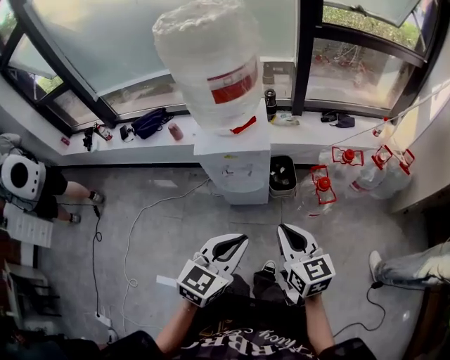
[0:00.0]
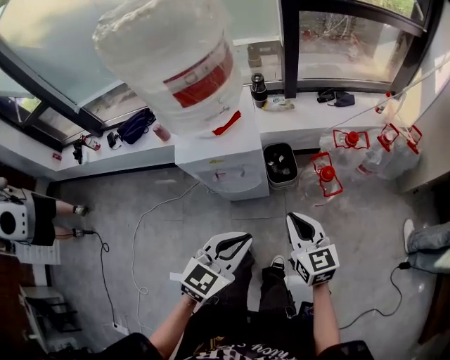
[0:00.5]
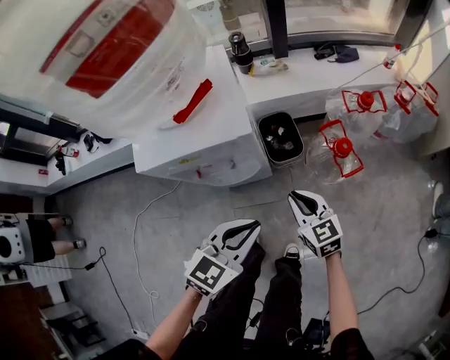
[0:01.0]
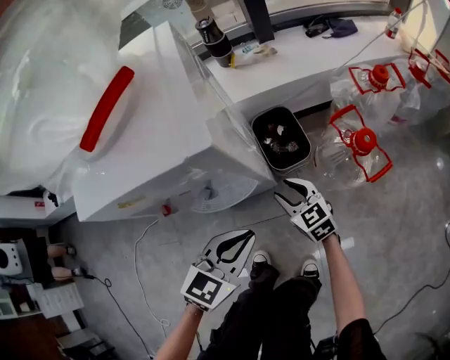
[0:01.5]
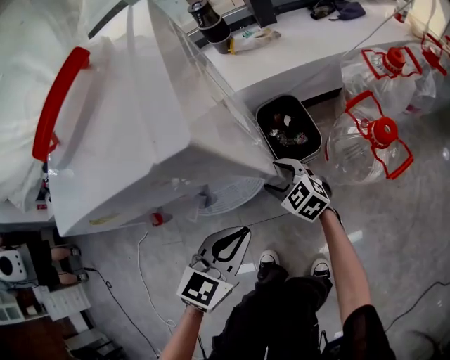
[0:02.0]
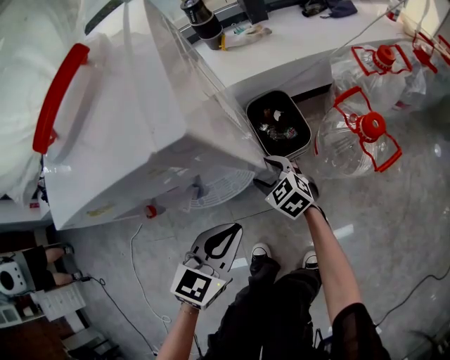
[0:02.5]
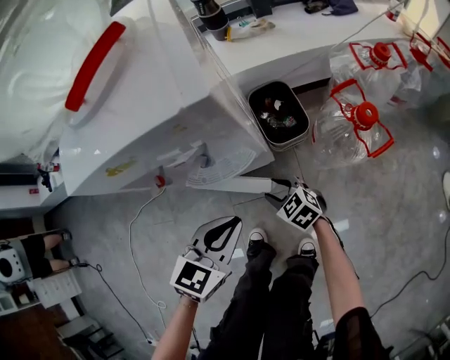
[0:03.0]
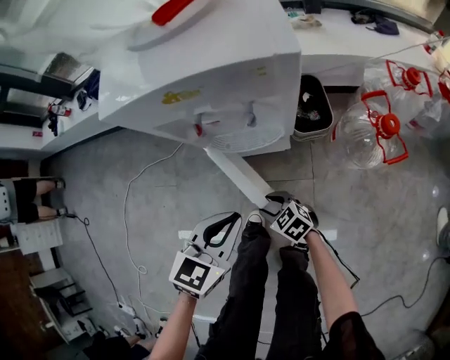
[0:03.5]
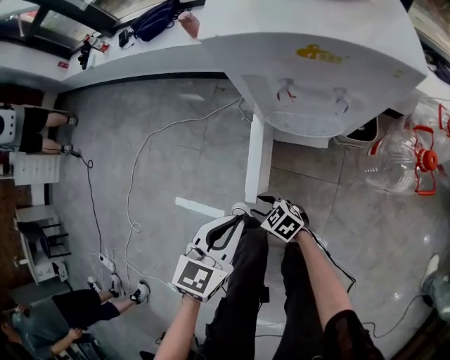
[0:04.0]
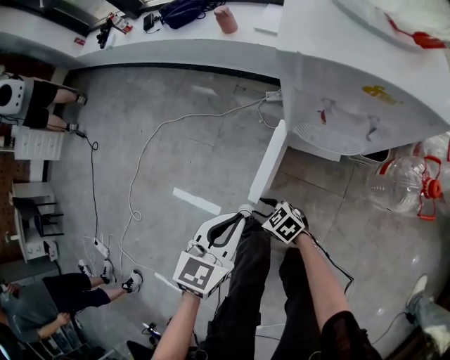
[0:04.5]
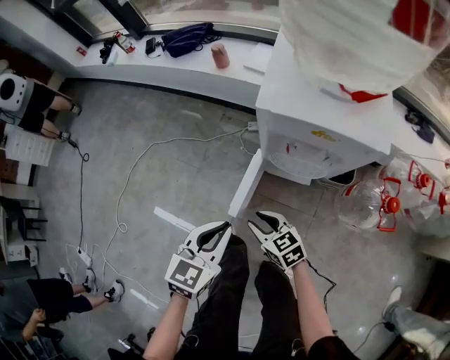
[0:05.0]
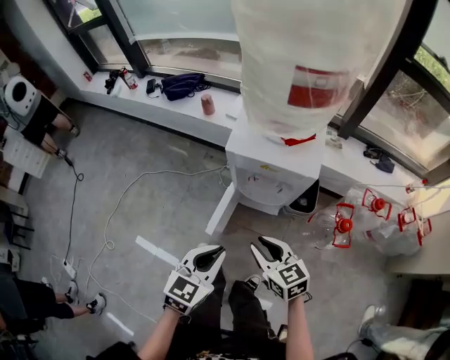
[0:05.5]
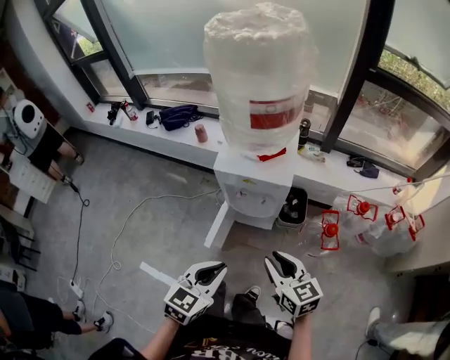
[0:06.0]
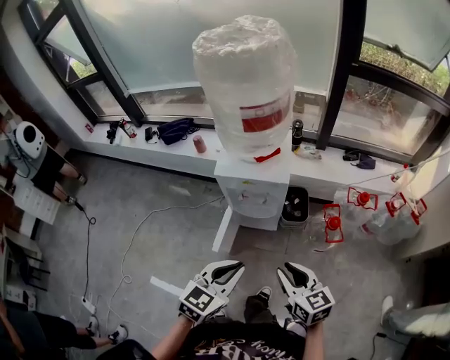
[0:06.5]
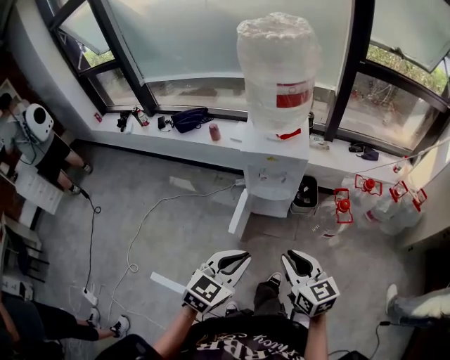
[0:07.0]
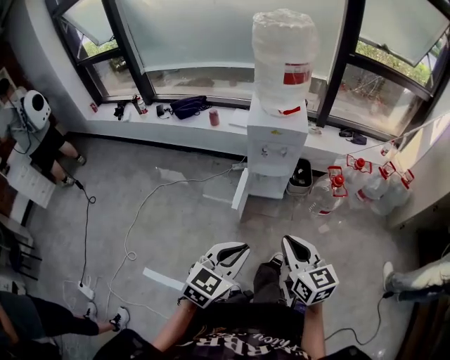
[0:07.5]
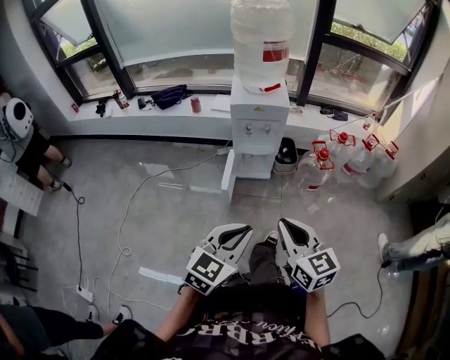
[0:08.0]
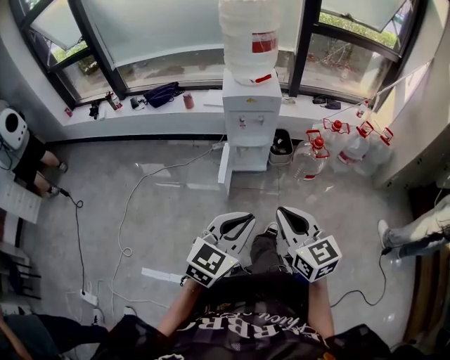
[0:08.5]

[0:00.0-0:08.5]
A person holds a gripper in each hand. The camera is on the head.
0:00.0 to 0:02.0: Both grippers move downward and forward, roughly 60 cm. The right gripper rotates some 30 degrees, and opens.
0:02.0 to 0:04.0: The left gripper shifts by some 25 cm, and turns by some 40 degrees. Meanwhile the right gripper moves about 40 cm, and changes its angle by roughly 40 degrees.
0:04.0 to 0:06.5: Both grippers travel together upward, about 40 cm. The right gripper turns by some 40 degrees.
0:06.5 to 0:08.5: The left gripper shifts some 30 cm backward. Meanwhile the right gripper is displaced backward and to the left by approximately 35 cm, and closes up.

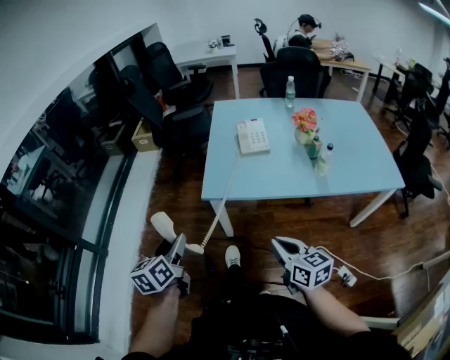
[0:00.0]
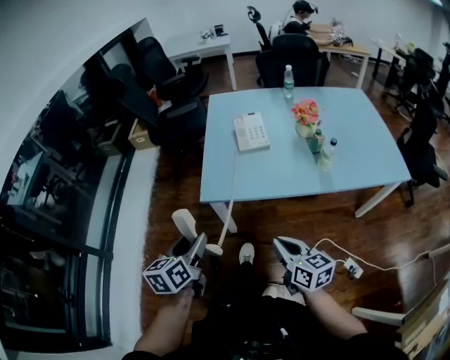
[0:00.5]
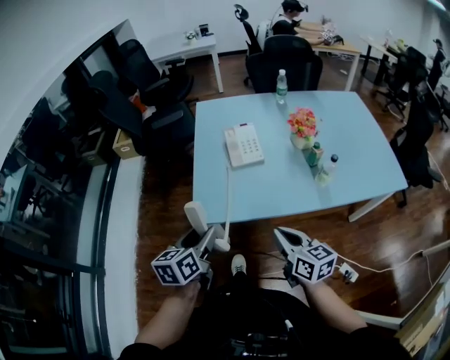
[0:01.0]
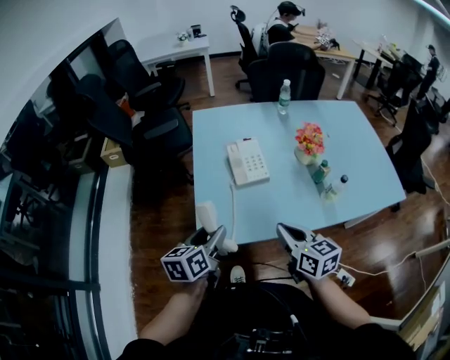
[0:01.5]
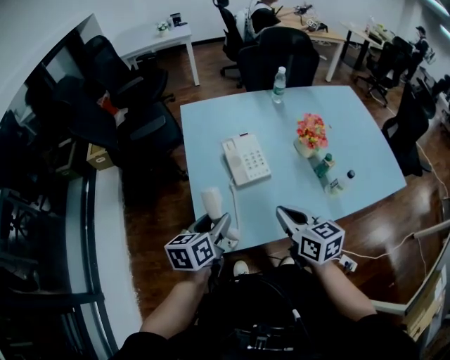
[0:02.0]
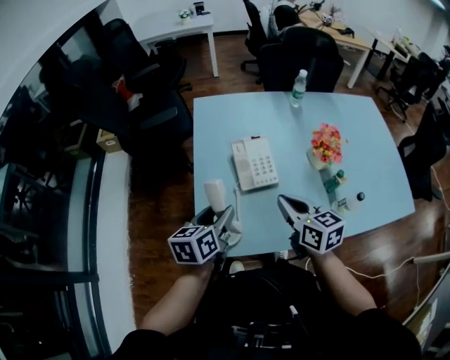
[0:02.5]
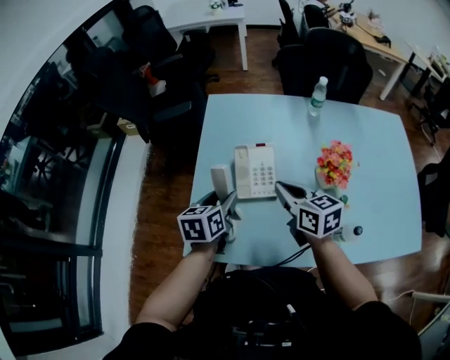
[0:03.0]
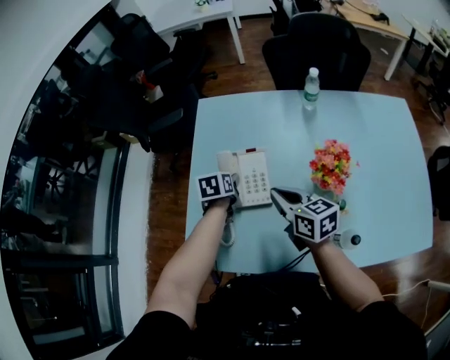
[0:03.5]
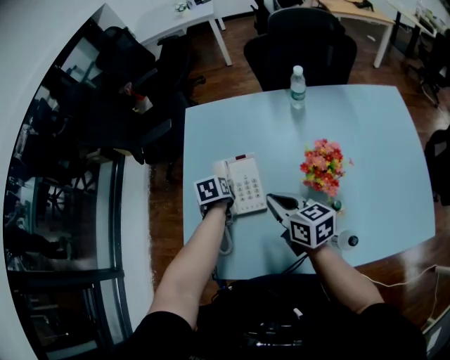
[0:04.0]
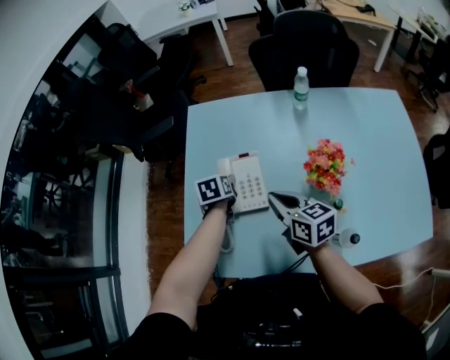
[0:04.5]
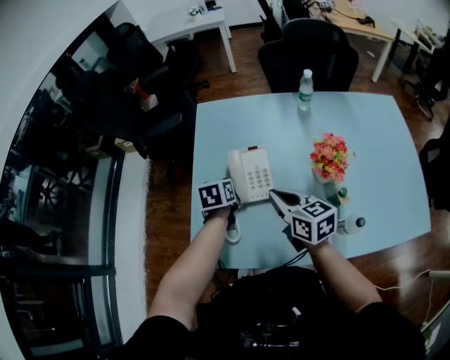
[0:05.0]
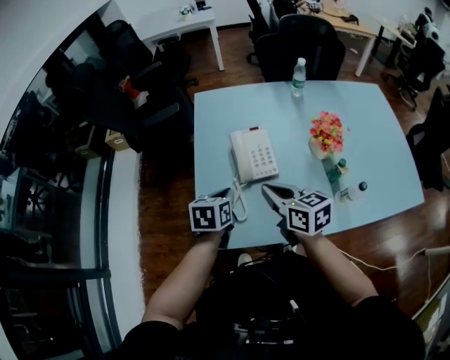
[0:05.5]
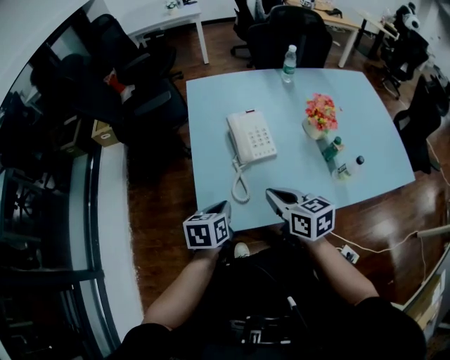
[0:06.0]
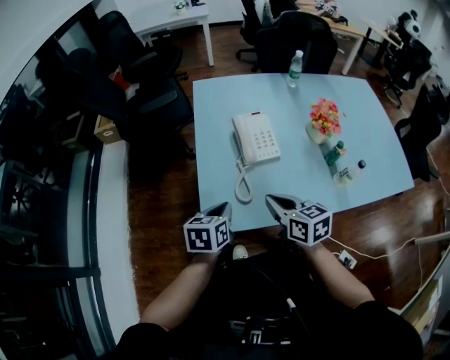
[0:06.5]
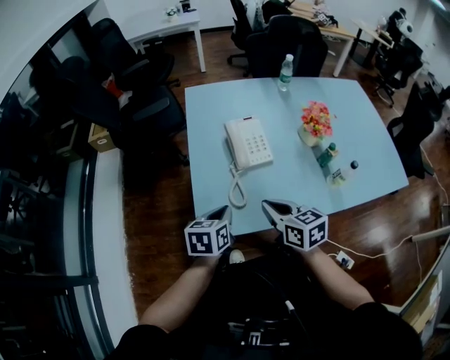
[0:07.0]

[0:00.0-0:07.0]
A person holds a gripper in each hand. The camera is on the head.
0:00.0 to 0:02.0: The two grippers go approximately 35 cm forward. The left gripper changes its angle by roughly 30 degrees.
0:02.0 to 0:03.5: The right gripper travels forward and to the right by some 20 cm, and rotates some 20 degrees; the left gripper is displaced forward, downward and to the right by approximately 30 cm, and turns by roughly 30 degrees.
0:03.5 to 0:05.0: The left gripper changes place by some 5 cm, and closes.
0:05.0 to 0:07.0: The left gripper moves backward, some 25 cm, and closes. Meanwhile the right gripper heads backward and to the left, covering roughly 20 cm.

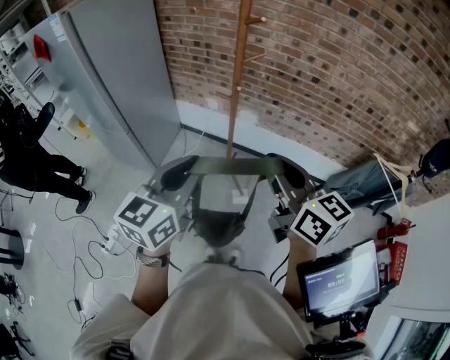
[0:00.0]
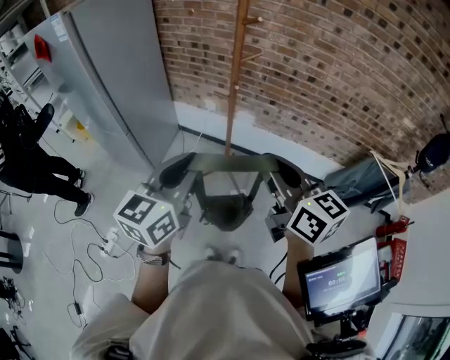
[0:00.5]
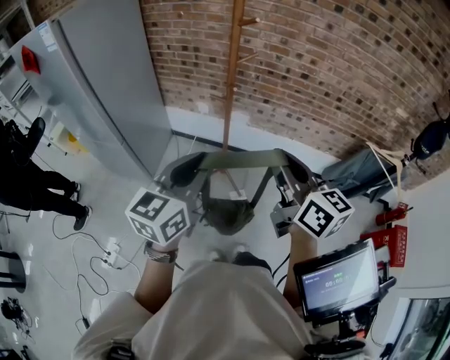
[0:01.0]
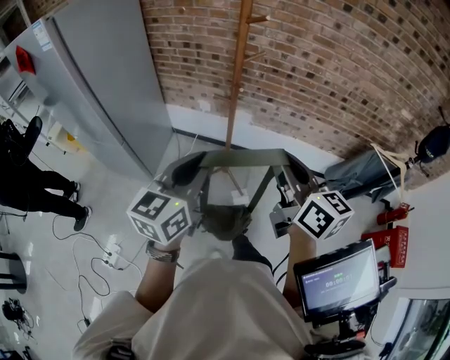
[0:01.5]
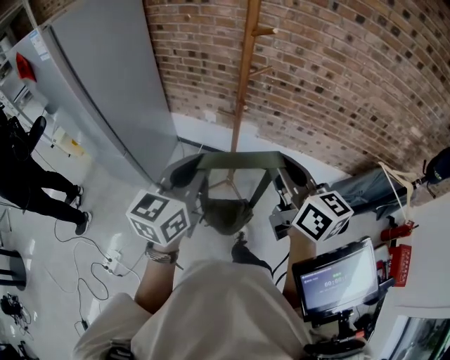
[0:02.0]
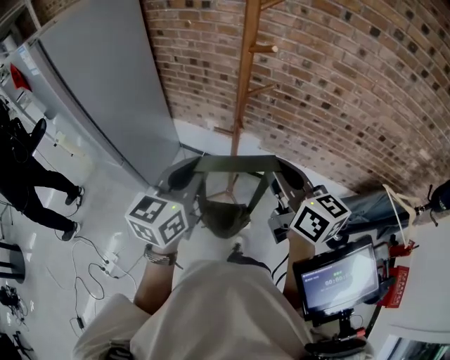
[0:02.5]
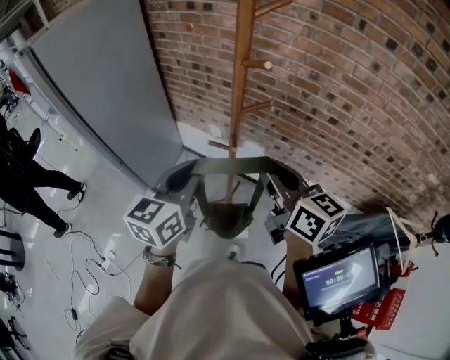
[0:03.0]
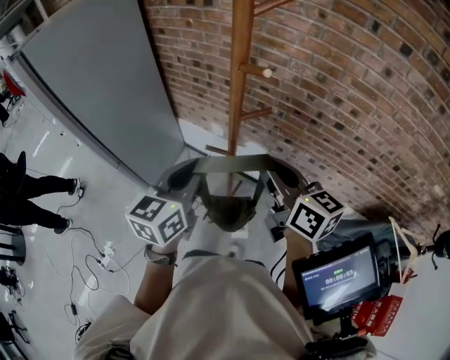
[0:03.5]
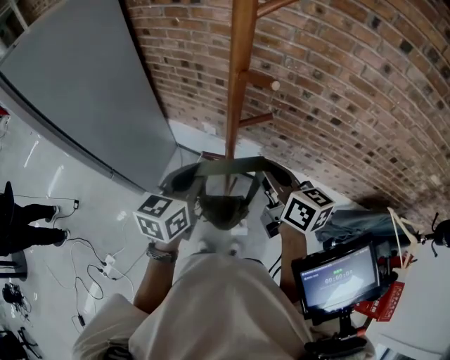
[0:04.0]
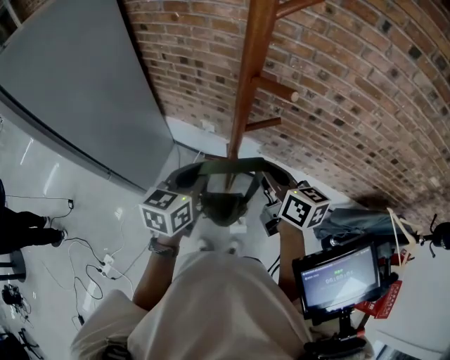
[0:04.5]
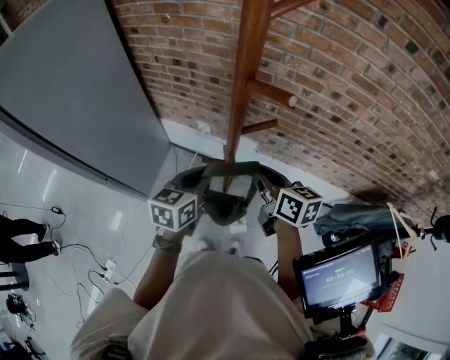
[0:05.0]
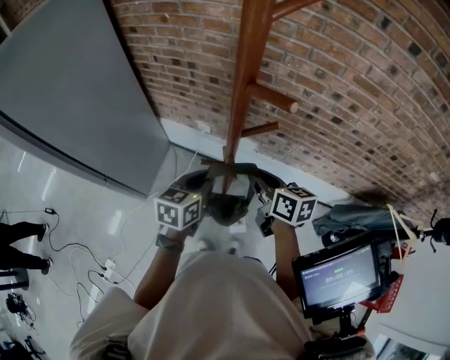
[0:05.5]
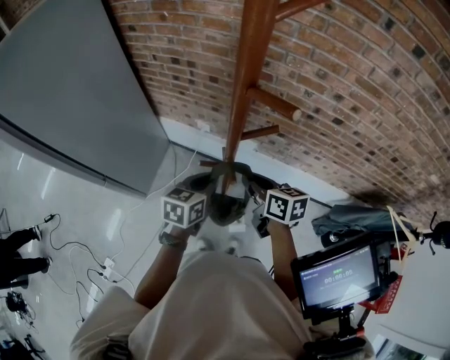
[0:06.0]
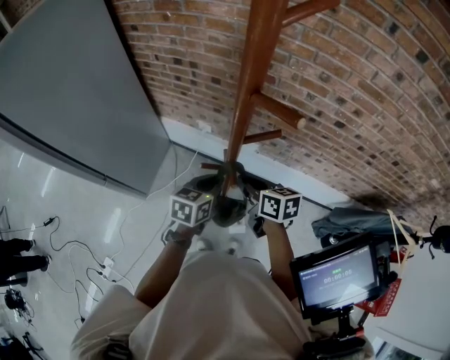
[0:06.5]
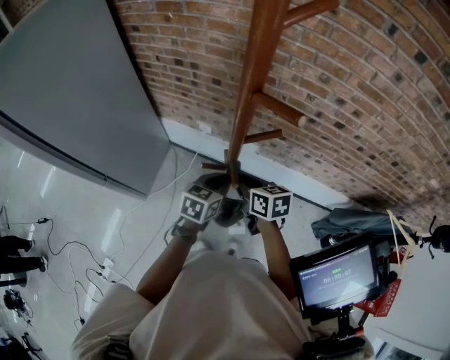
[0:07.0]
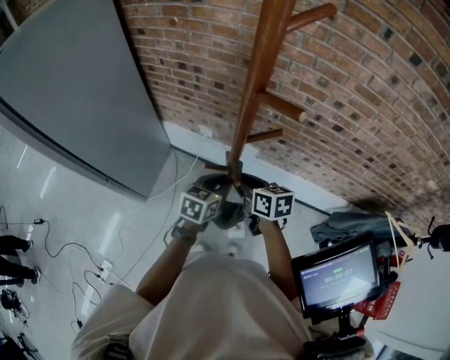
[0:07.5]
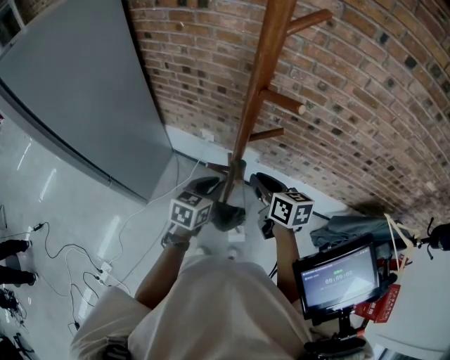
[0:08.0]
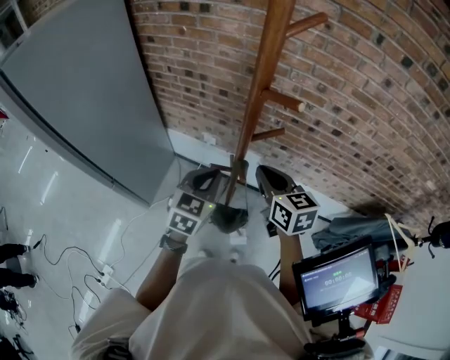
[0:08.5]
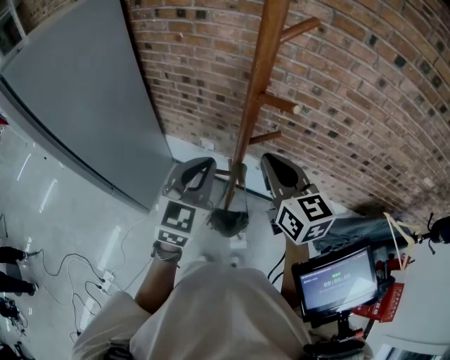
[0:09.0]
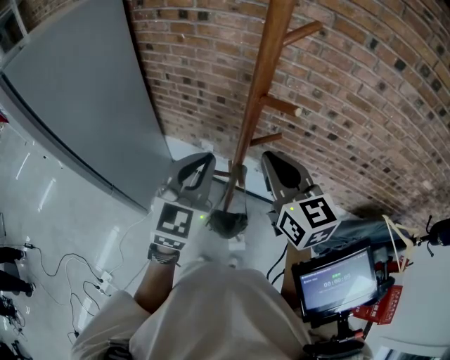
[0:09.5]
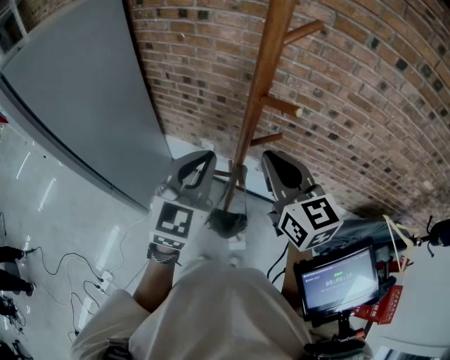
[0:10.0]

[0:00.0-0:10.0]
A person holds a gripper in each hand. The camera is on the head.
0:00.0 to 0:02.0: Both grippers move forward, about 10 cm.
0:02.0 to 0:04.0: Both grippers move forward, some 20 cm.
0:04.0 to 0:06.0: The two grippers go some 15 cm downward.
0:06.0 to 0:08.0: The grippers stay close to where they were, moving slightly.
0:08.0 to 0:10.0: Both grippers travel together upward, about 20 cm. The left gripper swivels about 40 degrees; the right gripper turns by roughly 30 degrees.

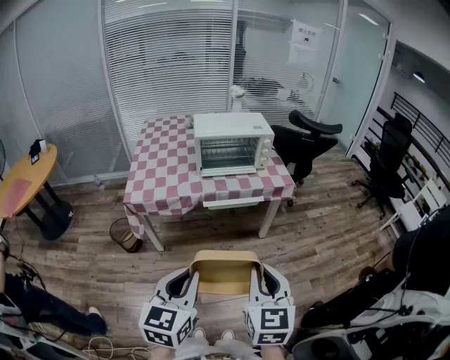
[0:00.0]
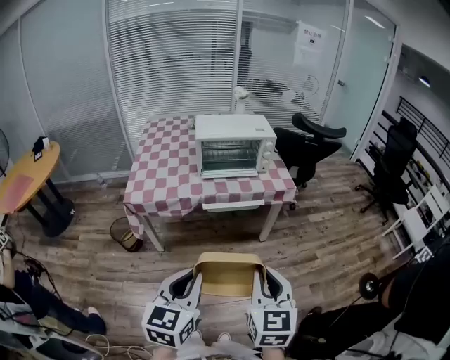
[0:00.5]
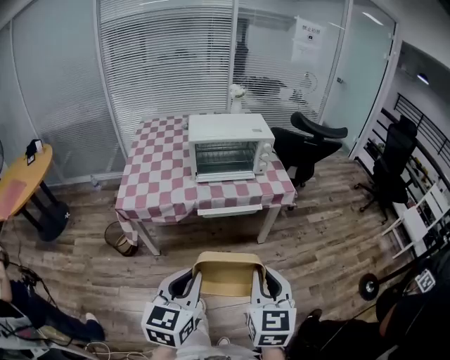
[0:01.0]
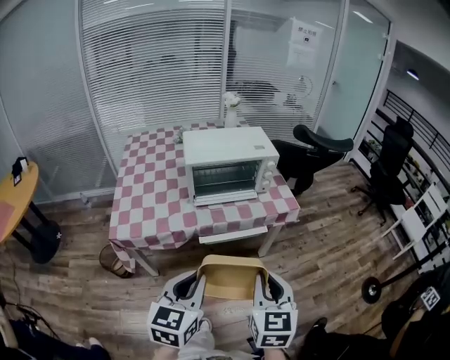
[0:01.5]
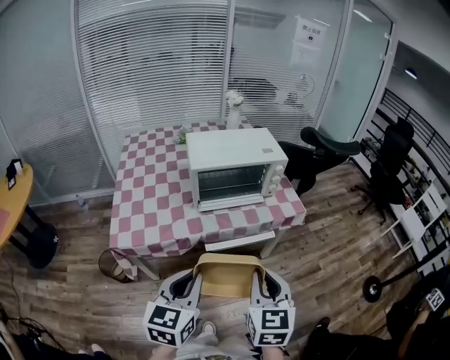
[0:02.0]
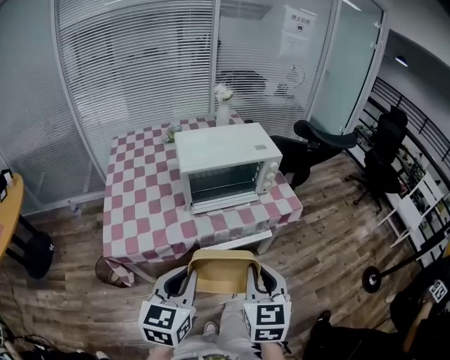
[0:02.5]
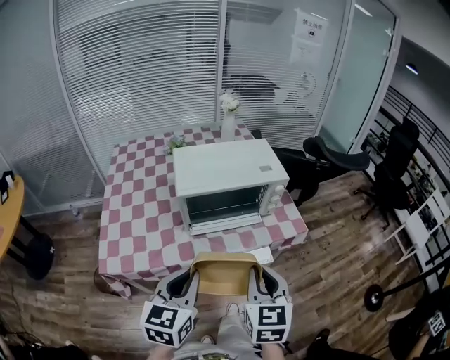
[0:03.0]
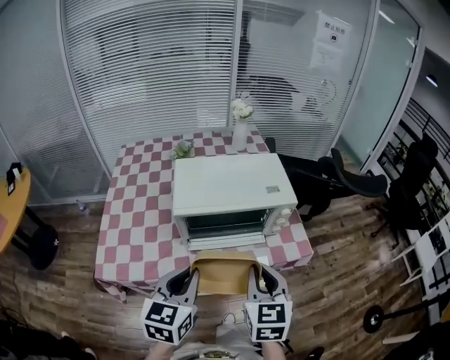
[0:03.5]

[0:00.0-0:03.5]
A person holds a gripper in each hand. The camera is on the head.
0:00.0 to 0:02.0: Both grippers move forward, some 25 cm.
0:02.0 to 0:03.5: The two grippers go some 25 cm forward.
